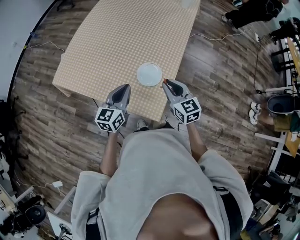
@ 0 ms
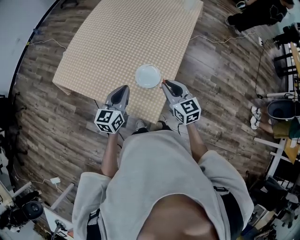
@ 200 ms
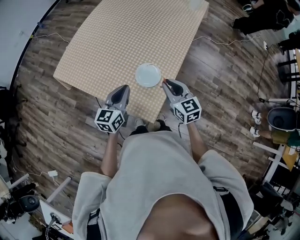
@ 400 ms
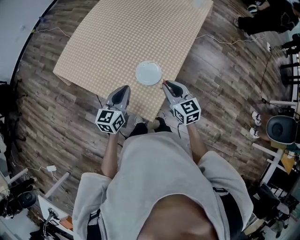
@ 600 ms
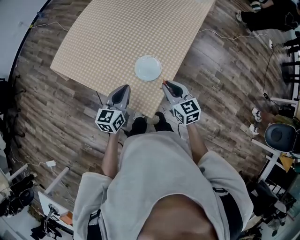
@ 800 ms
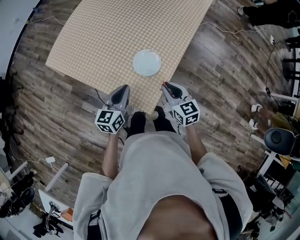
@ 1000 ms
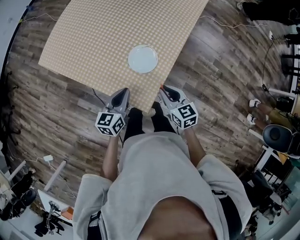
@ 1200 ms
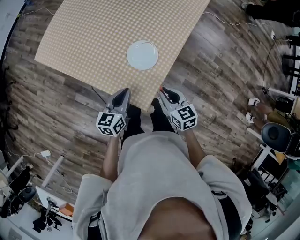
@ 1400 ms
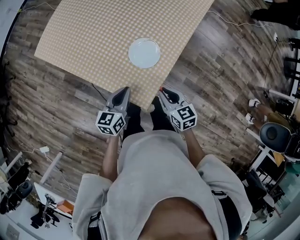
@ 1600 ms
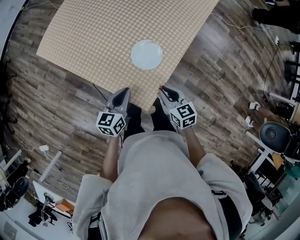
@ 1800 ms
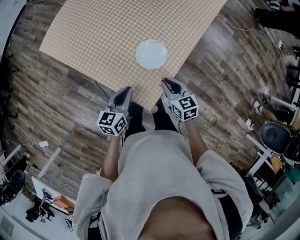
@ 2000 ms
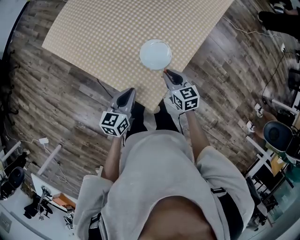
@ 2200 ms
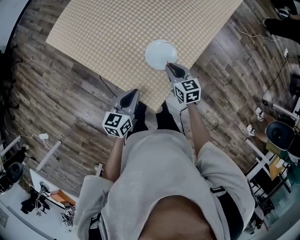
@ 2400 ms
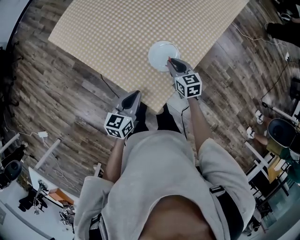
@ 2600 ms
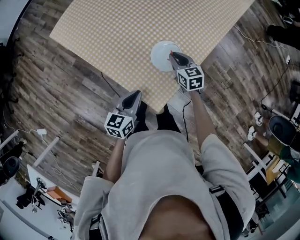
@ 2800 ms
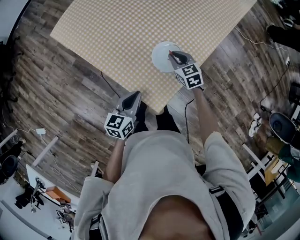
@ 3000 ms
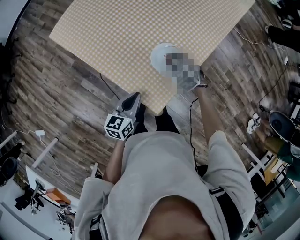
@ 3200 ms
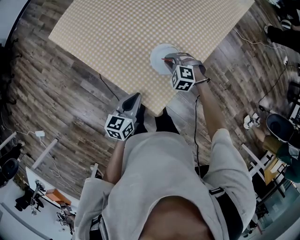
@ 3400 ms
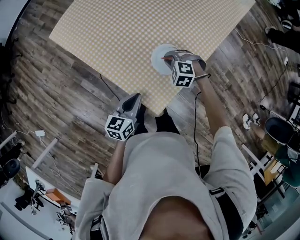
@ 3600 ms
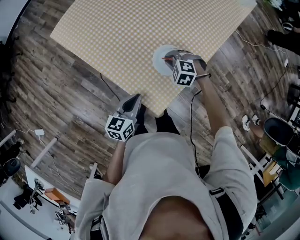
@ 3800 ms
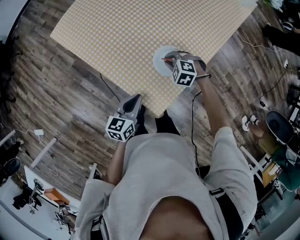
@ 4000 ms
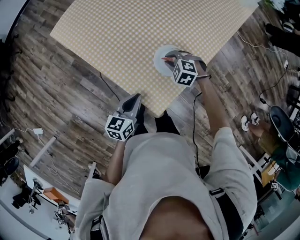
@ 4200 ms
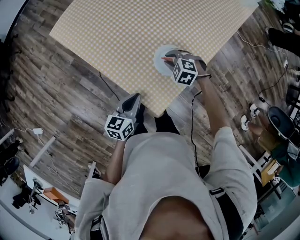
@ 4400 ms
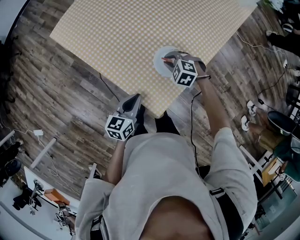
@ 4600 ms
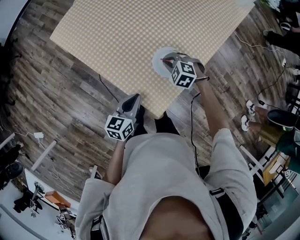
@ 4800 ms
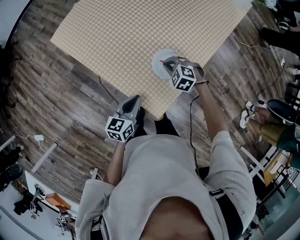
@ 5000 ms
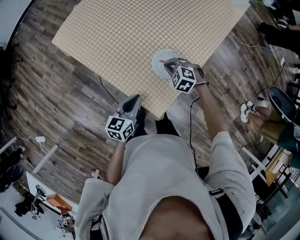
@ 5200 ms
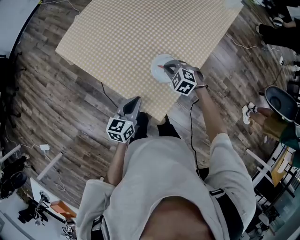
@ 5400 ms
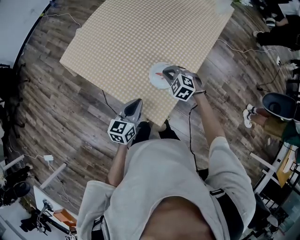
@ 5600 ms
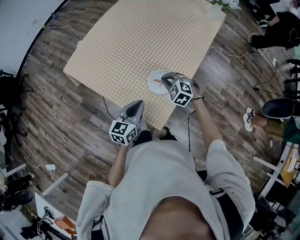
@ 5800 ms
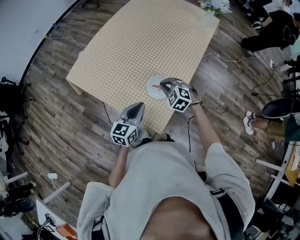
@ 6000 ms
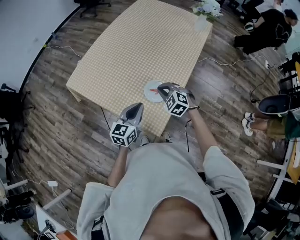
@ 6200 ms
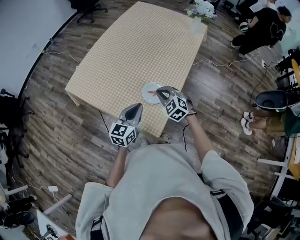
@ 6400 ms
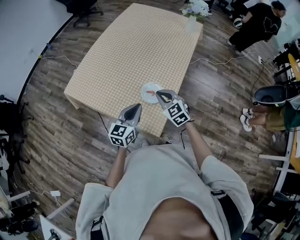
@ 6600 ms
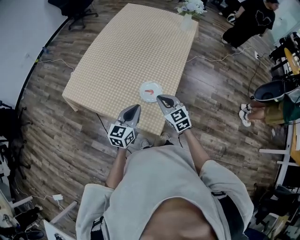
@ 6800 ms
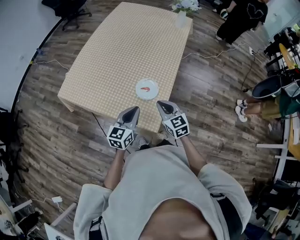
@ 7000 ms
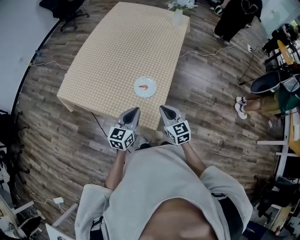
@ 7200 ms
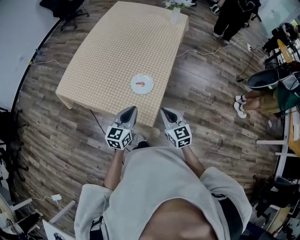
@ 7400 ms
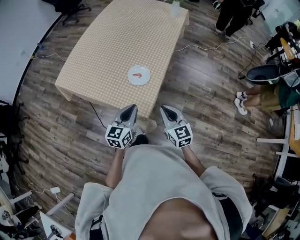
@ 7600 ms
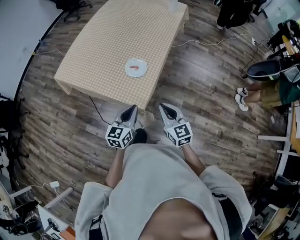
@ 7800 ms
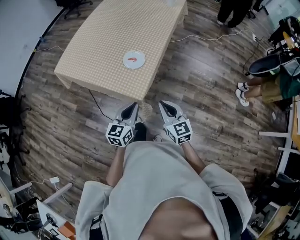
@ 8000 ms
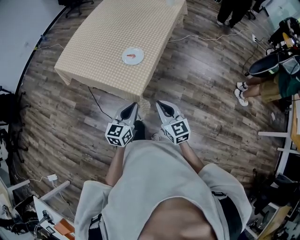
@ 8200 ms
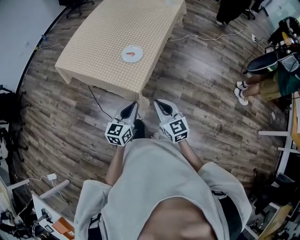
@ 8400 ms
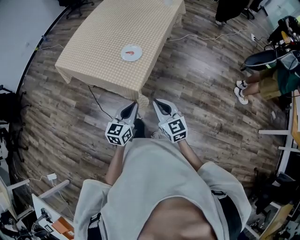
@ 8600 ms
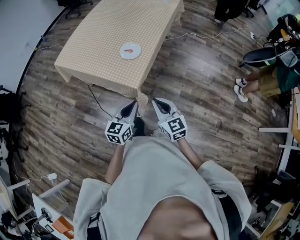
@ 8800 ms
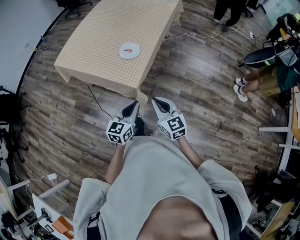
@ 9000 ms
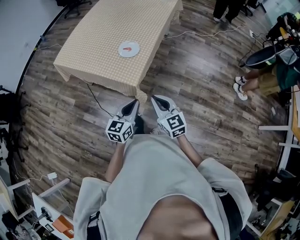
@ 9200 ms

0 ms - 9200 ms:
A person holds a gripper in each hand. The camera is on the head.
0 ms - 1600 ms: The two grippers go some 15 cm downward and backward. The right gripper rotates approximately 20 degrees.
1600 ms - 3000 ms: The right gripper is displaced forward by some 20 cm, and turns by roughly 20 degrees.
3000 ms - 4600 ms: The right gripper rolls counterclockwise, seen from behind, by about 40 degrees.
4600 ms - 6200 ms: The two grippers go roughly 15 cm upward. The left gripper rotates roughly 30 degrees; the right gripper turns by some 30 degrees.
6200 ms - 7600 ms: The left gripper moves backward and to the right, about 15 cm. The right gripper shifts about 25 cm backward and to the right, and twists some 50 degrees clockwise, seen from behind.
7600 ms - 9200 ms: The left gripper shifts some 20 cm backward and to the right. Meanwhile the right gripper shifts about 15 cm backward.

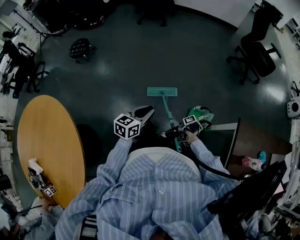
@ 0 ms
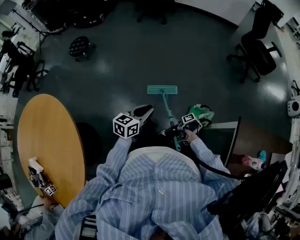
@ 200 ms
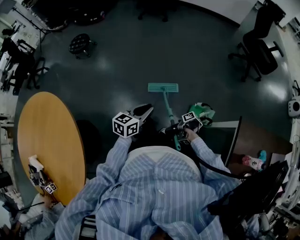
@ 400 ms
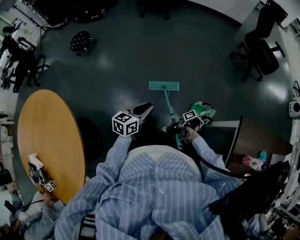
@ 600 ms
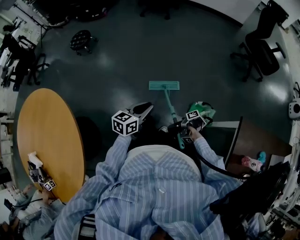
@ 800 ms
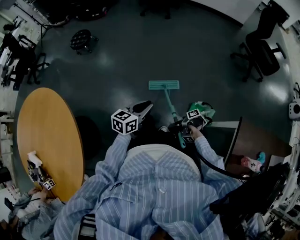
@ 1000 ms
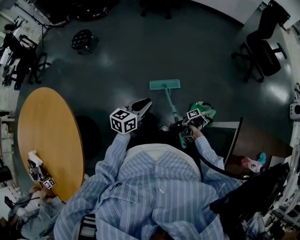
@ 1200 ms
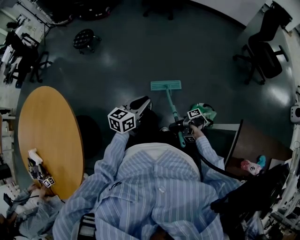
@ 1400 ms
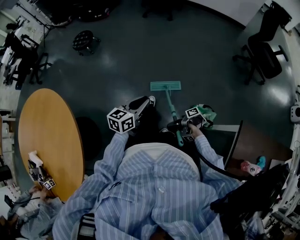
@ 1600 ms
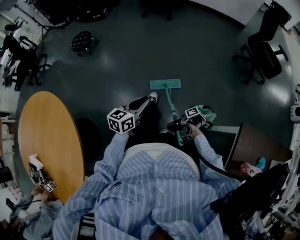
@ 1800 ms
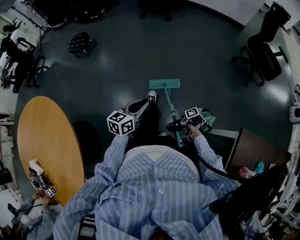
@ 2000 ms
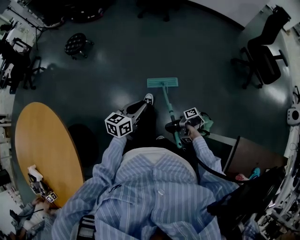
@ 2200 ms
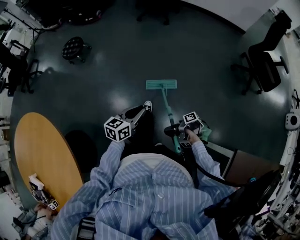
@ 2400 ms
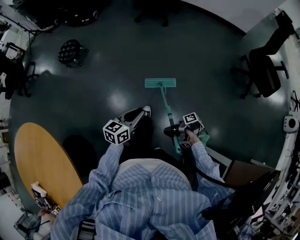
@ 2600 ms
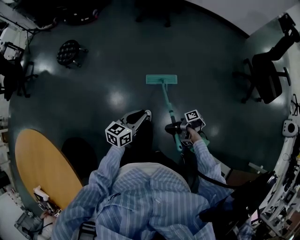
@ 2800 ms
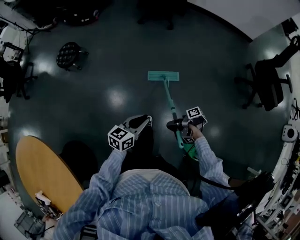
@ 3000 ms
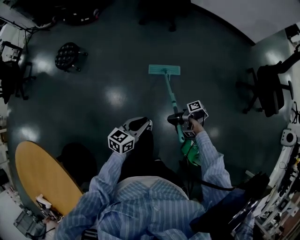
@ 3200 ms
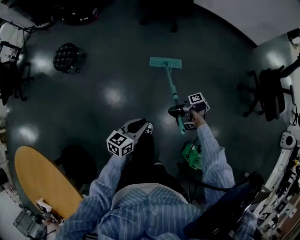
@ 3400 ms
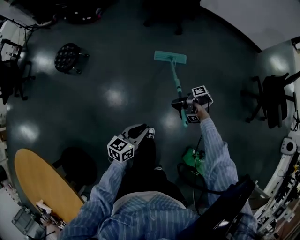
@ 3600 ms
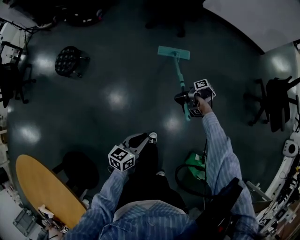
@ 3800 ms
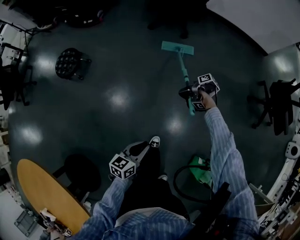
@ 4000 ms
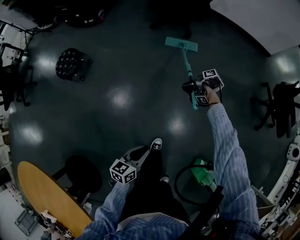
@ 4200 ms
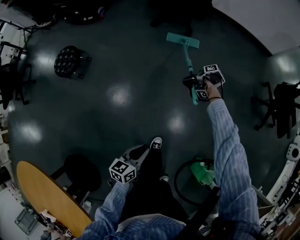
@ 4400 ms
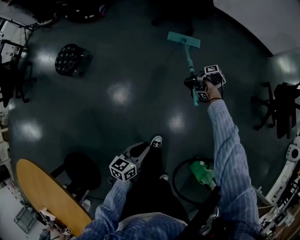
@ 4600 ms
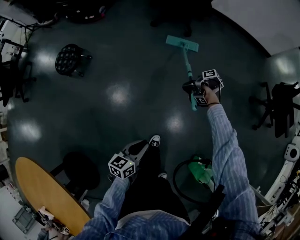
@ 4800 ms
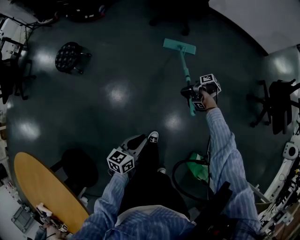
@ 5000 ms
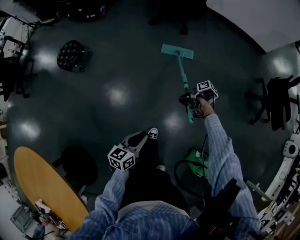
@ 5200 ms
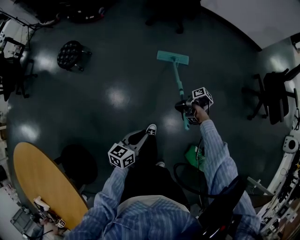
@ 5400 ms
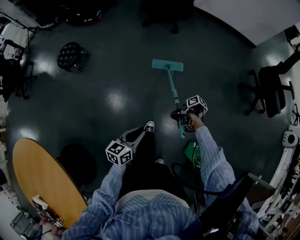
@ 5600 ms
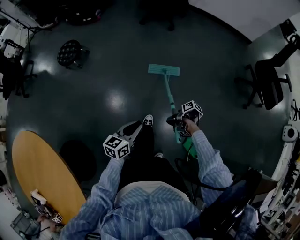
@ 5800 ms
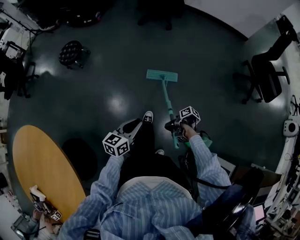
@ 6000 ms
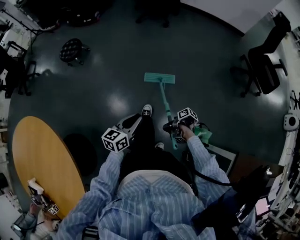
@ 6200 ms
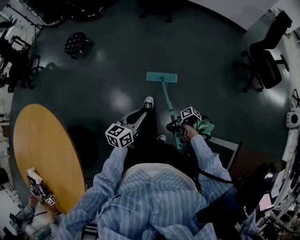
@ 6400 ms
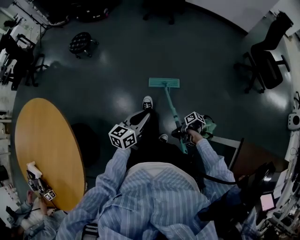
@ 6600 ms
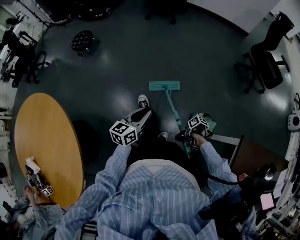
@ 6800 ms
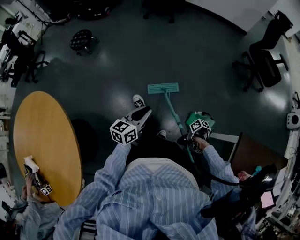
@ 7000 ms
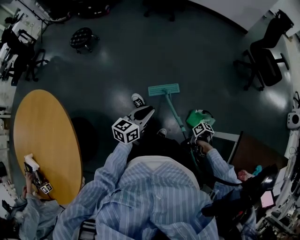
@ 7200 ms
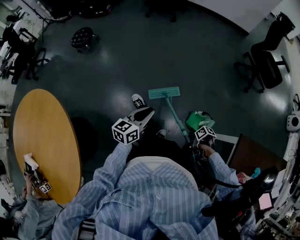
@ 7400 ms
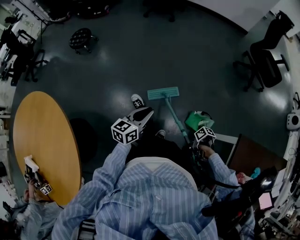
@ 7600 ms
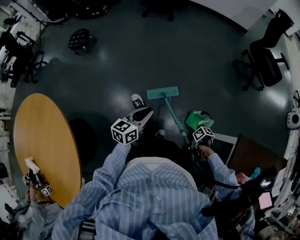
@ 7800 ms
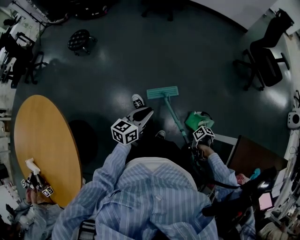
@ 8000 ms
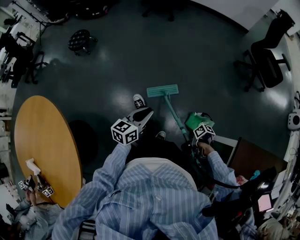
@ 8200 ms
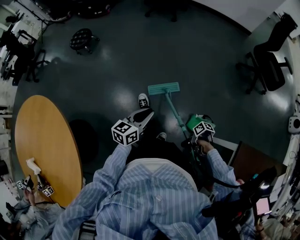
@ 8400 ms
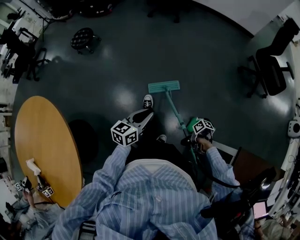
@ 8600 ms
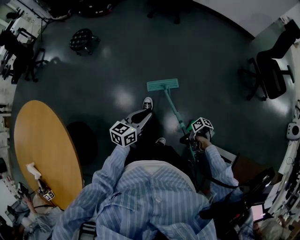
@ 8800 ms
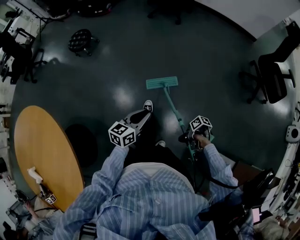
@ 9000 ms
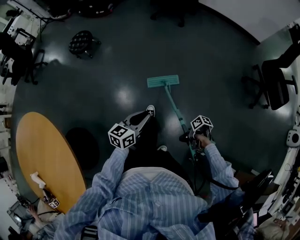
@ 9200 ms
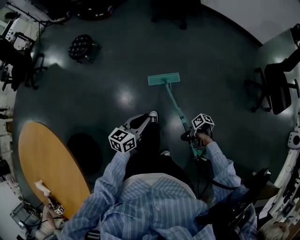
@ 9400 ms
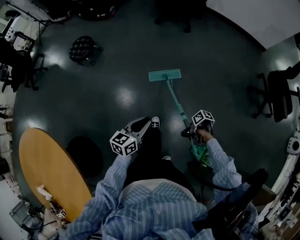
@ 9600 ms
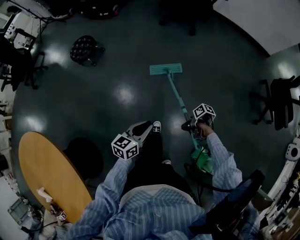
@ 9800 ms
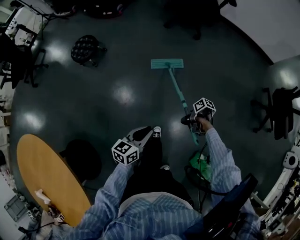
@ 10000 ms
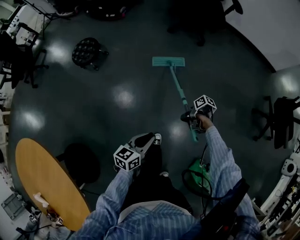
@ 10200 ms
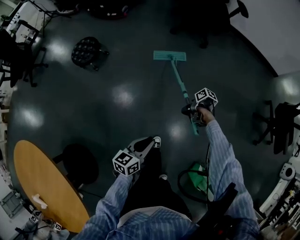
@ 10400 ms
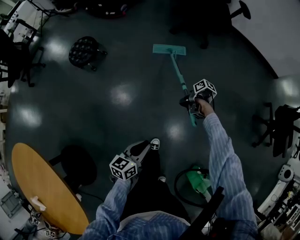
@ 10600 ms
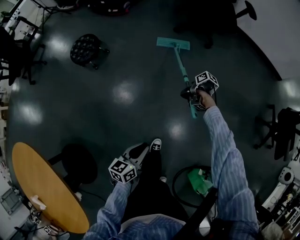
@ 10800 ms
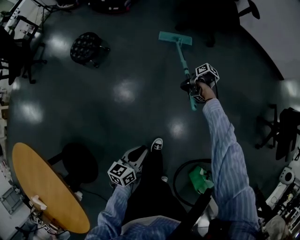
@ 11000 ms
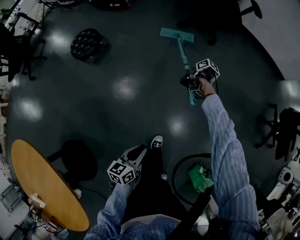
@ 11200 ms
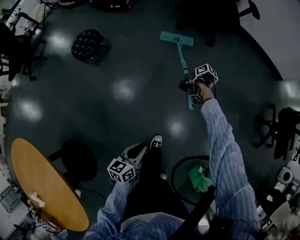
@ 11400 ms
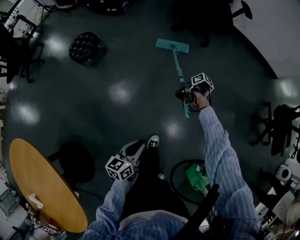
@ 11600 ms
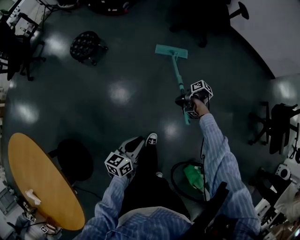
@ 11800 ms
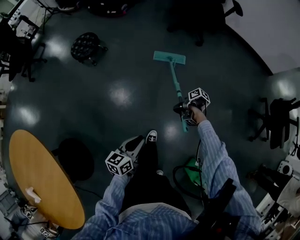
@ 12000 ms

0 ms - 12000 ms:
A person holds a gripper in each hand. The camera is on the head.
0 ms - 1600 ms: The left gripper changes place by approximately 5 cm.
1600 ms - 3000 ms: The left gripper shifts by approximately 35 cm.
3000 ms - 4400 ms: The left gripper shifts by roughly 20 cm.
4400 ms - 6000 ms: The left gripper ends up about 25 cm from where it was.
6000 ms - 7600 ms: The left gripper shifts by roughly 20 cm.
7600 ms - 9000 ms: The left gripper moves approximately 15 cm.
9000 ms - 10400 ms: The left gripper changes place by roughly 30 cm.
10400 ms - 12000 ms: The left gripper shifts by about 10 cm.

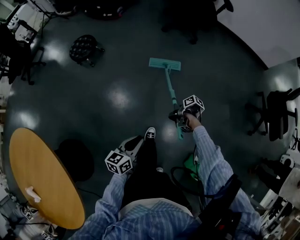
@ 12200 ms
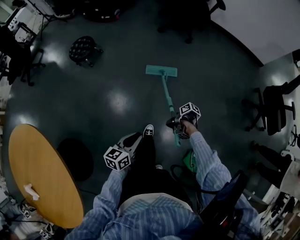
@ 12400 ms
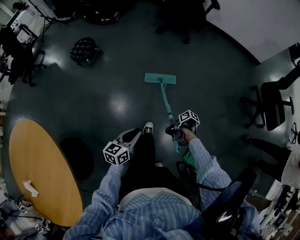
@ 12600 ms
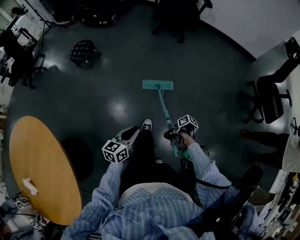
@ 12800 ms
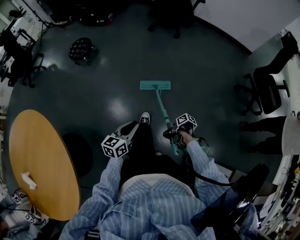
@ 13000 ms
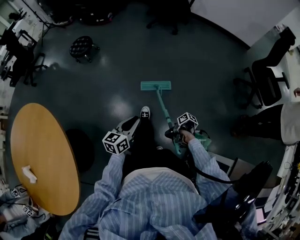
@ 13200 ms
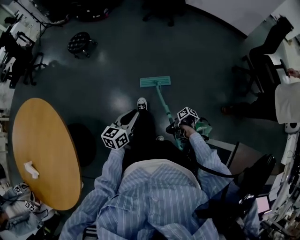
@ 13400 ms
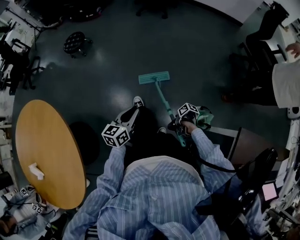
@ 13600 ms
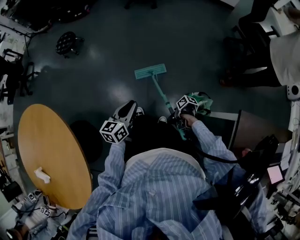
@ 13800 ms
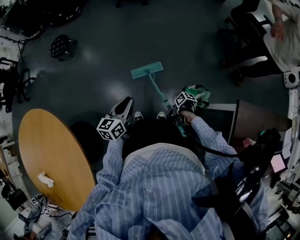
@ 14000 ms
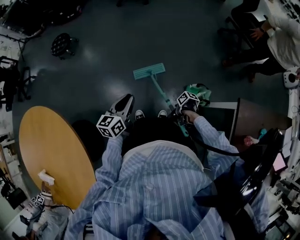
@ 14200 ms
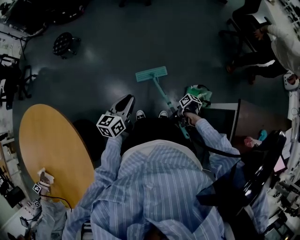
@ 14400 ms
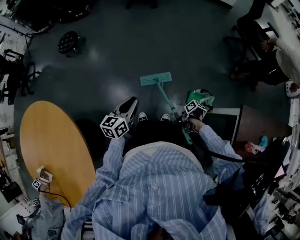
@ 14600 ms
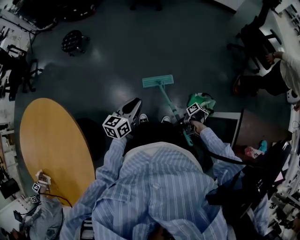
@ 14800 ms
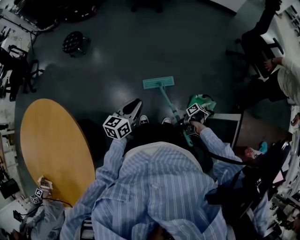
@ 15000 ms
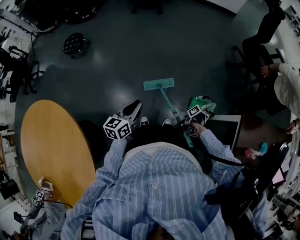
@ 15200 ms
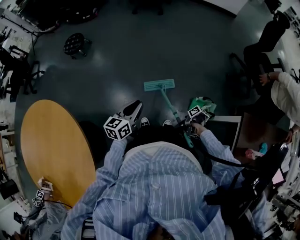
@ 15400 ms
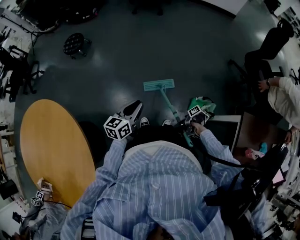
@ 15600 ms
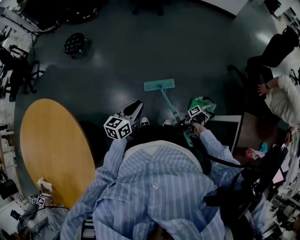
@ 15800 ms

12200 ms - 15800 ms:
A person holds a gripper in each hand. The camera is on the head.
12200 ms - 14000 ms: The left gripper changes place by roughly 35 cm.
